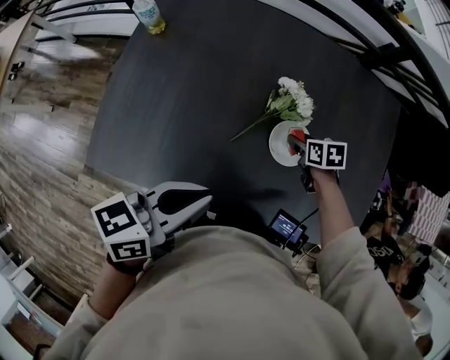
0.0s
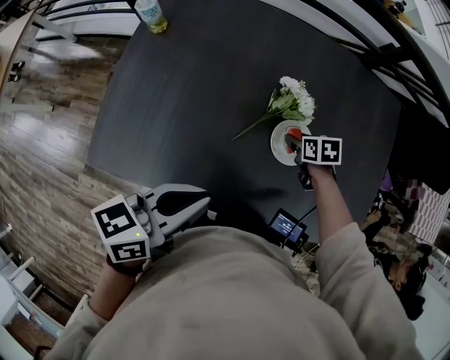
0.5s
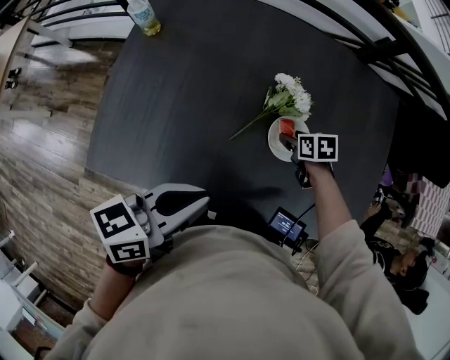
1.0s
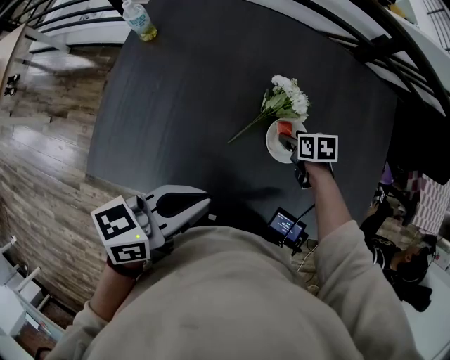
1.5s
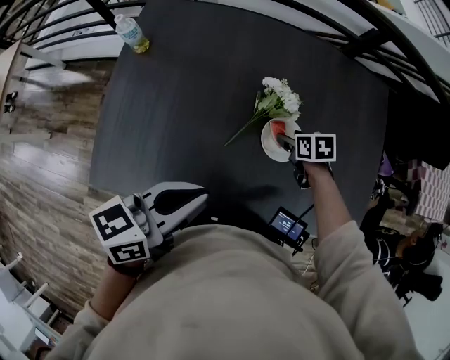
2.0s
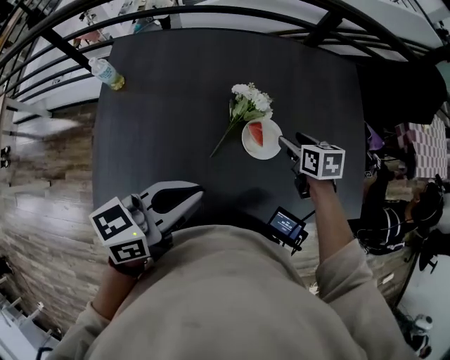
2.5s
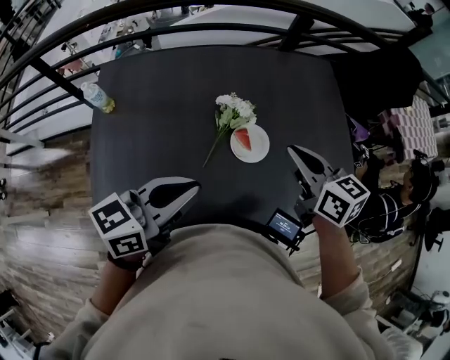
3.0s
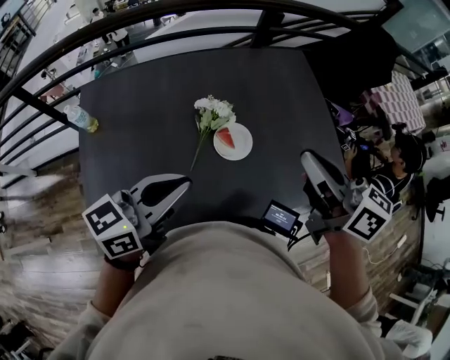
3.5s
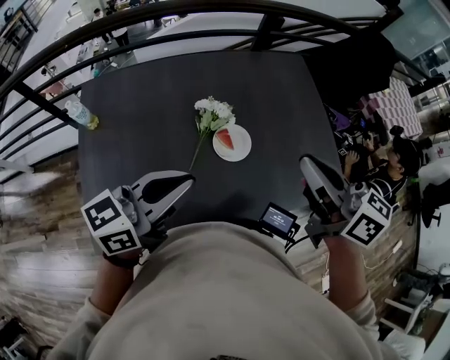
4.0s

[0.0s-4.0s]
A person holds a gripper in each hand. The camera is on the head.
0.0s to 2.0s: There are only small adjustments of the grippers.
2.0s to 4.0s: The right gripper heads upward, covering approximately 40 cm, tips its fingers upward by approximately 50 degrees, and closes. The left gripper goes about 5 cm upward, and swivels about 30 degrees.

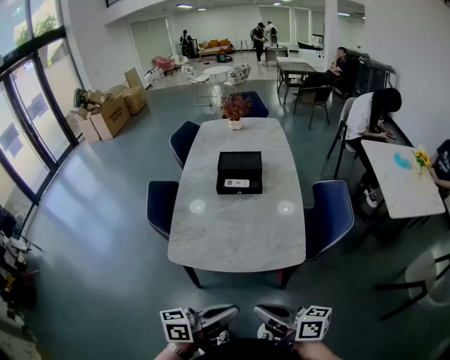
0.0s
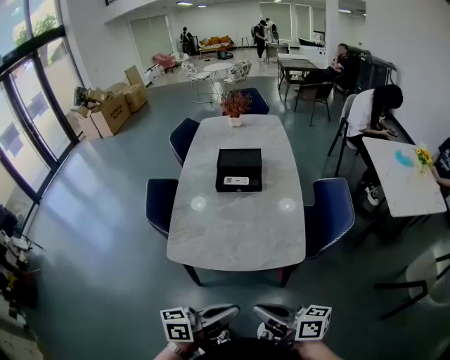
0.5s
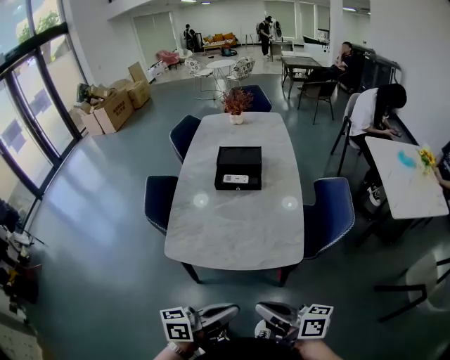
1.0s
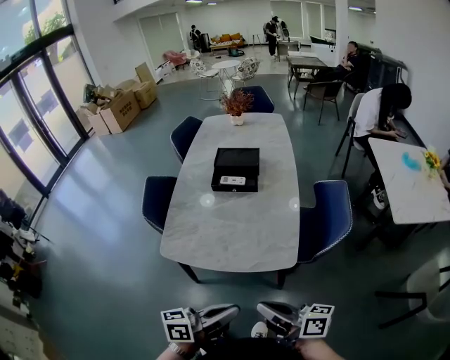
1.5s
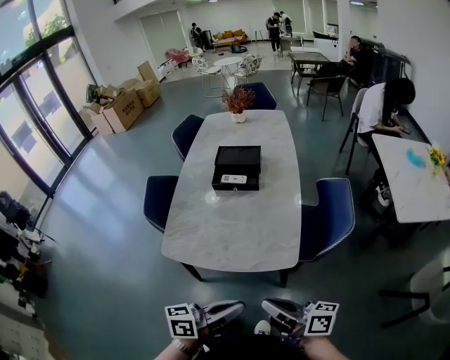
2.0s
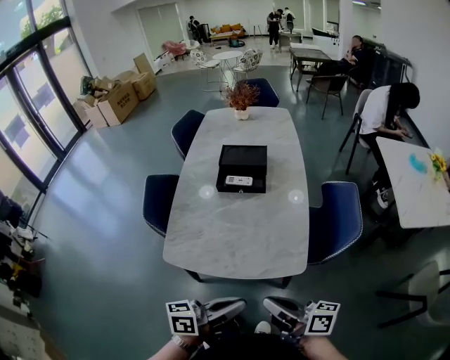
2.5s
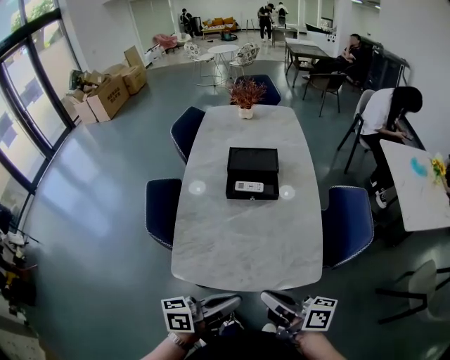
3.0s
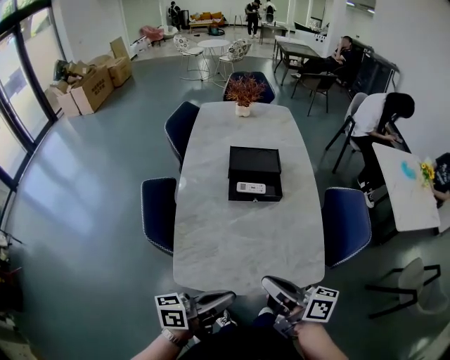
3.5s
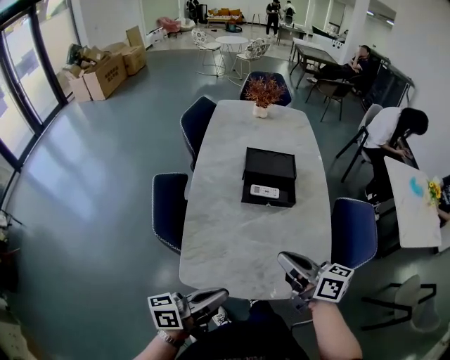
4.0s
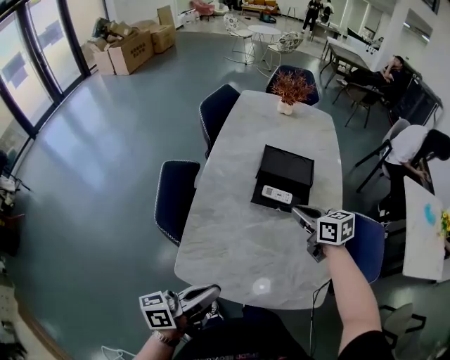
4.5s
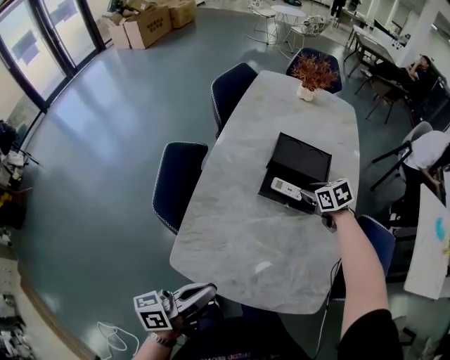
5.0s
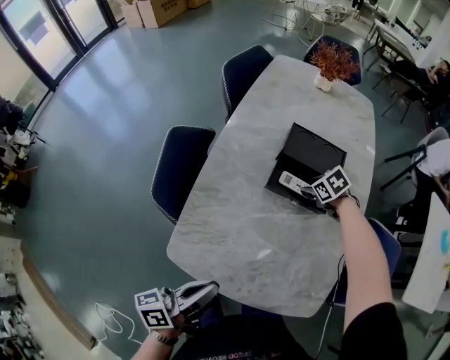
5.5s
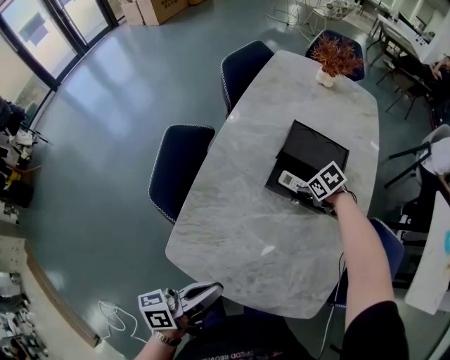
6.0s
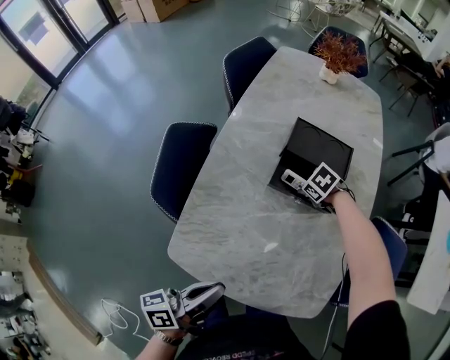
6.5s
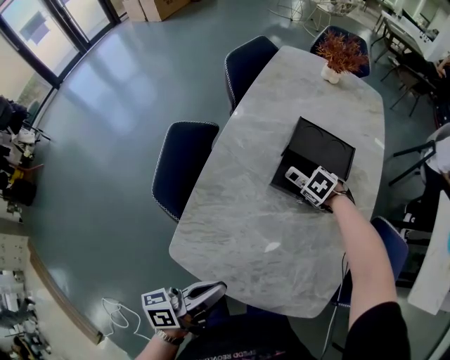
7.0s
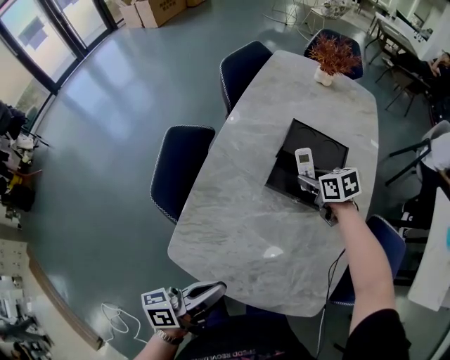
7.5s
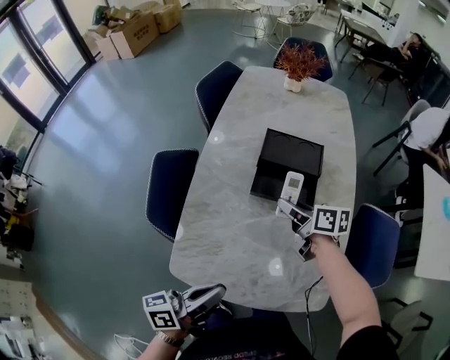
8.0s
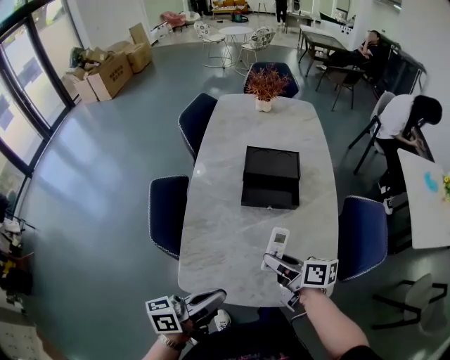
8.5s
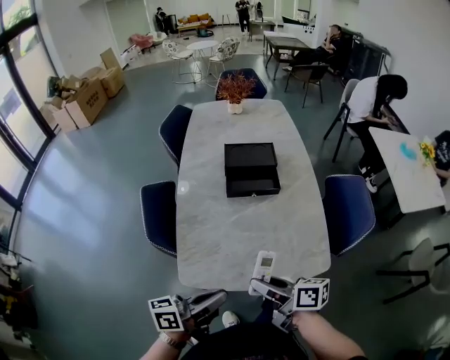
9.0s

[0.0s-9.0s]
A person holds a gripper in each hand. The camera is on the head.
0.0s to 2.0s: The two grippers go some 10 cm to the right.
2.0s to 4.5s: The right gripper shifts approximately 50 cm forward, and angles its fingers downward, by approximately 40 degrees. The left gripper is displaced to the left and forward by some 30 cm.
4.5s to 7.0s: The right gripper shifts about 20 cm downward, tilts its fingers roughly 50 degrees downward, and opens its fingers. The left gripper shifts by approximately 5 cm.
7.0s to 9.0s: The right gripper moves roughly 40 cm, and tips its fingers upward by some 70 degrees. The left gripper ends up approximately 10 cm from where it was, and changes its angle by some 30 degrees.

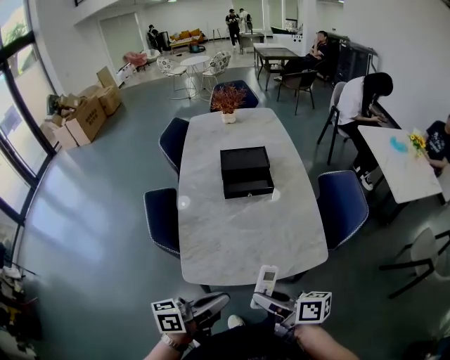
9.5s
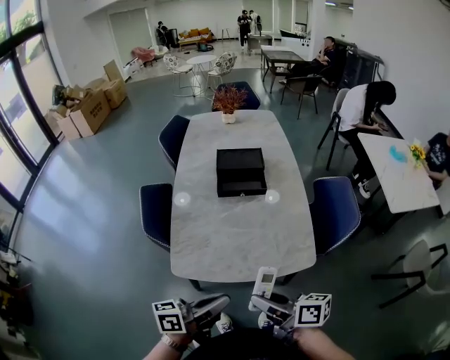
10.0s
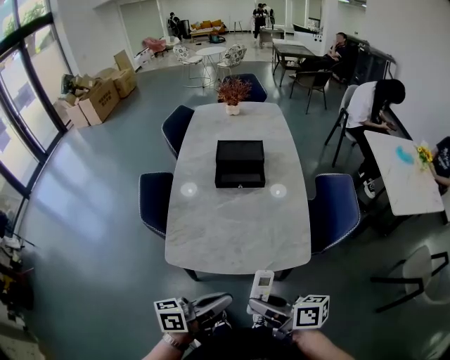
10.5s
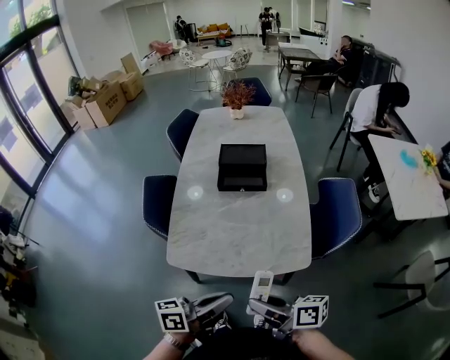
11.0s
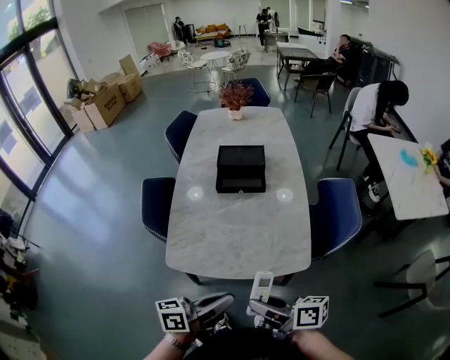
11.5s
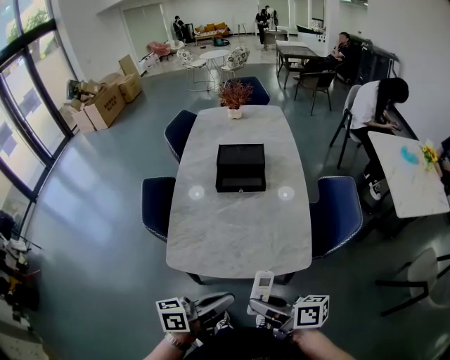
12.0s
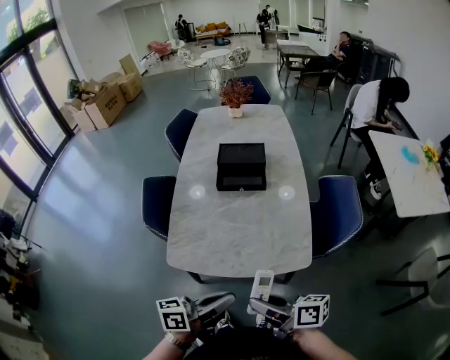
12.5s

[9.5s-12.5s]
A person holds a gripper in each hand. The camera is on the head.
9.5s to 11.0s: The two grippers go roughly 10 cm to the right.
11.0s to 12.5s: Neither gripper changes place.

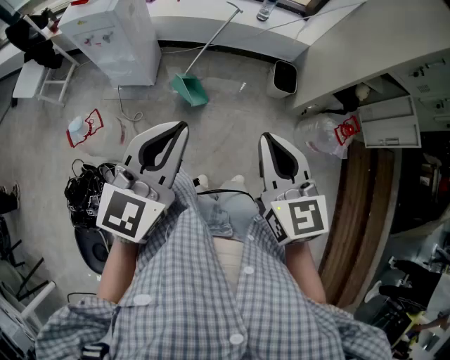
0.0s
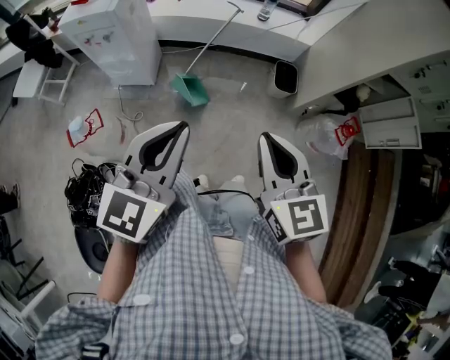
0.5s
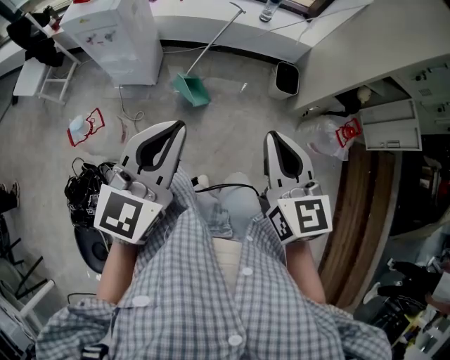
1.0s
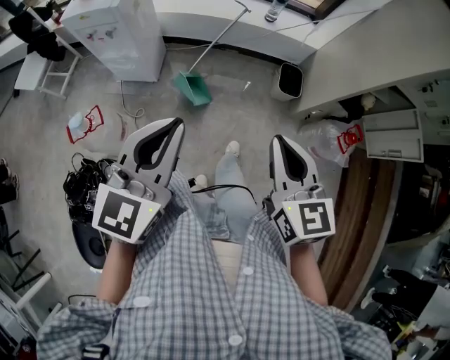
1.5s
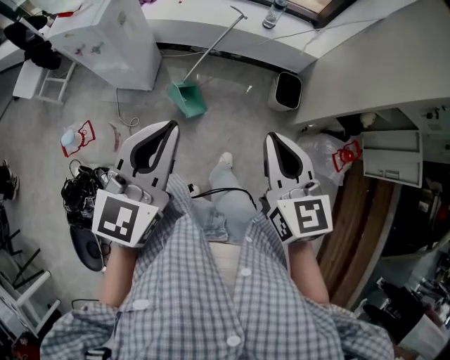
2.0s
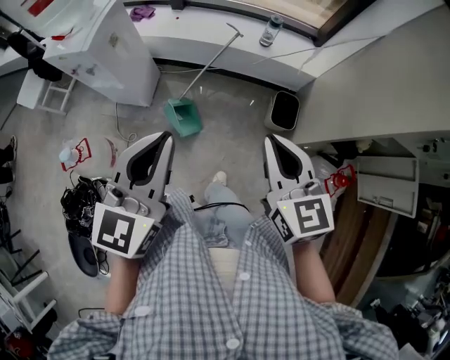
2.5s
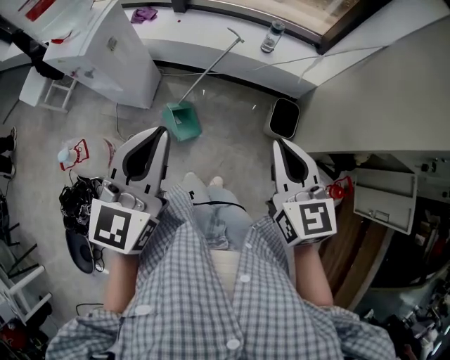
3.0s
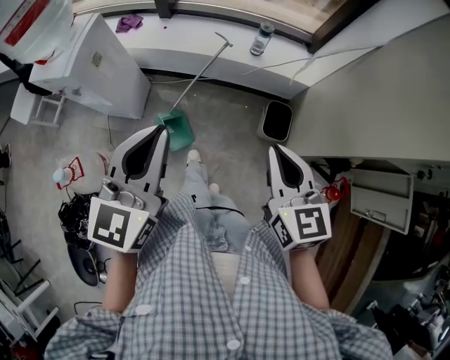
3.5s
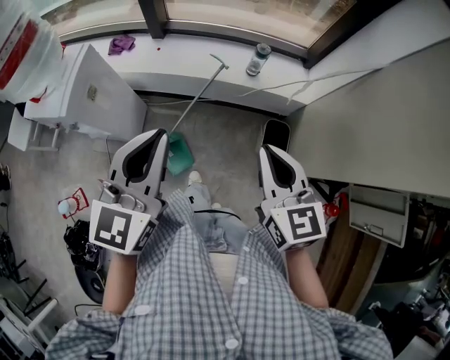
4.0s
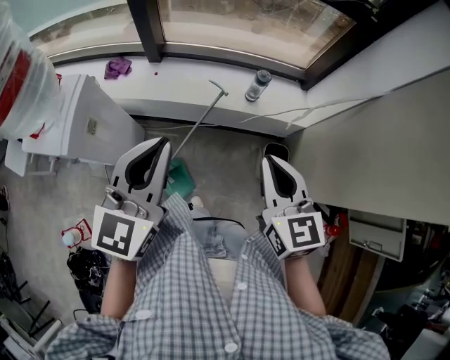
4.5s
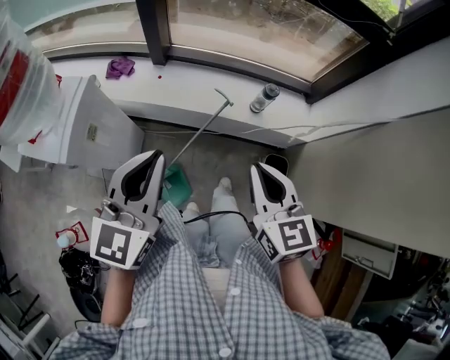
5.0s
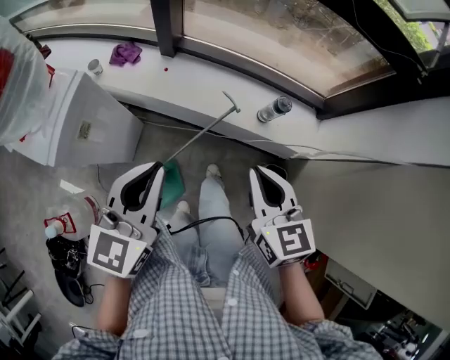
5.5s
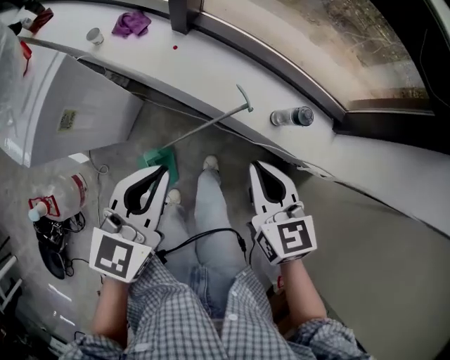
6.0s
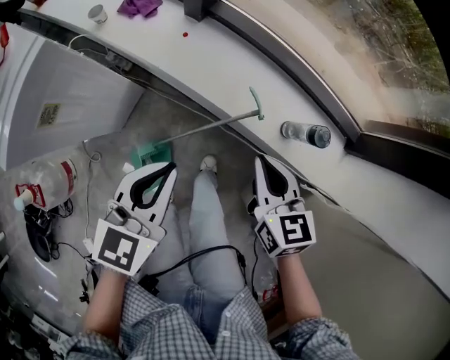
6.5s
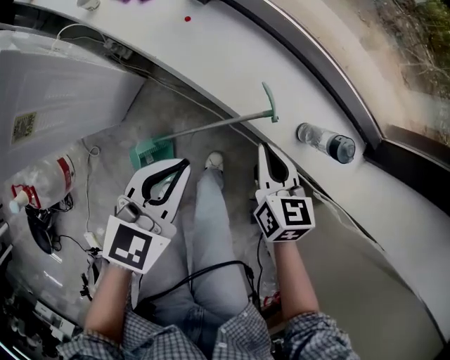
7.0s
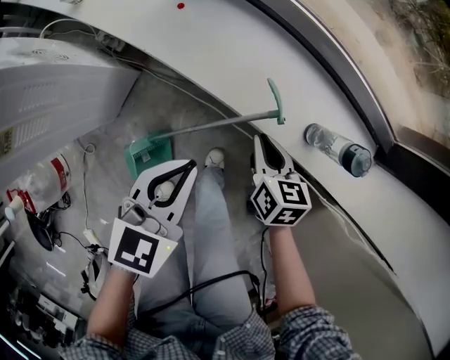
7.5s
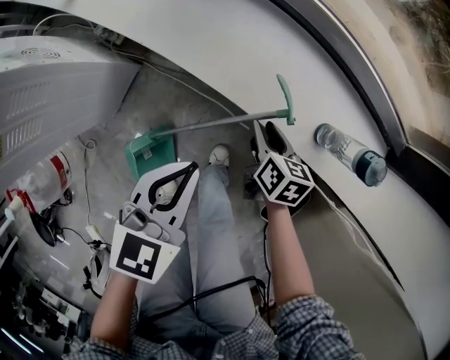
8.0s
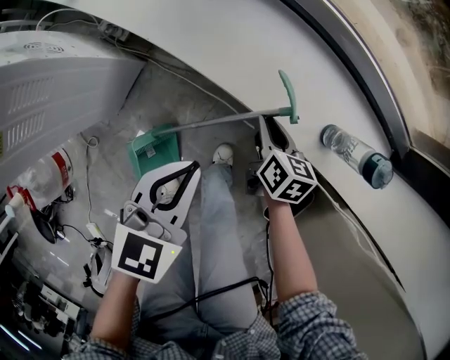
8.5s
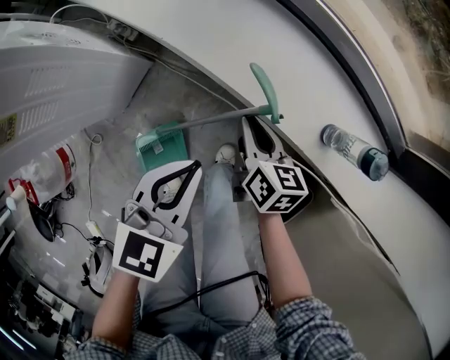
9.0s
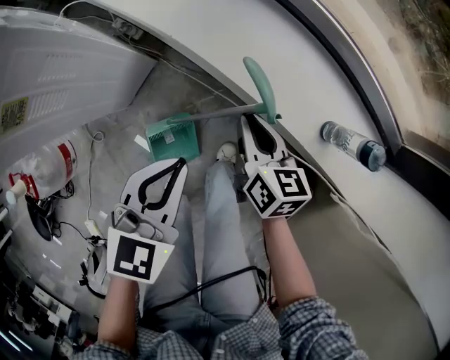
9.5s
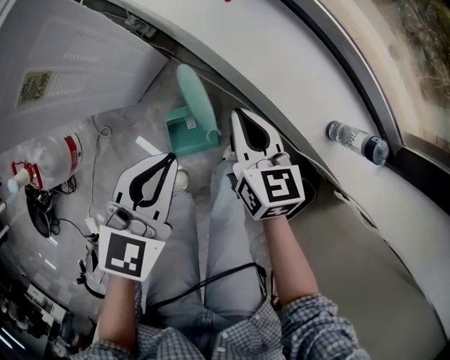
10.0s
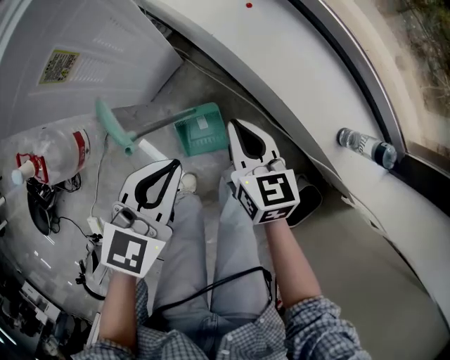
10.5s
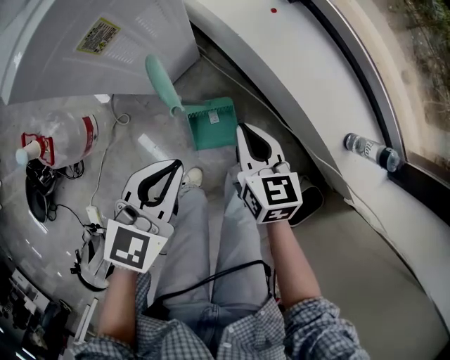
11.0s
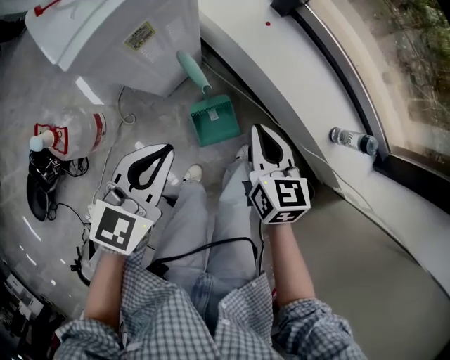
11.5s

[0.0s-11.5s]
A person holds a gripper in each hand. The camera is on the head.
0.0s to 2.0s: The right gripper travels forward and to the right by about 15 cm. The left gripper goes approximately 10 cm forward.
2.0s to 4.0s: The grippers both shift forward by approximately 25 cm.
4.0s to 6.0s: Both grippers move forward and downward, approximately 30 cm. The right gripper changes its angle by approximately 20 degrees. The left gripper changes its angle by approximately 20 degrees.
6.0s to 7.5s: Both grippers move downward, approximately 30 cm. The right gripper turns by approximately 20 degrees.
7.5s to 9.5s: The left gripper travels to the left by about 5 cm; the right gripper moves to the left, approximately 10 cm, travels downward and back again, roughly 10 cm each way, and opens, then closes once more.
9.5s to 11.5s: The left gripper is displaced to the left, upward and backward by about 25 cm. The right gripper shifts roughly 20 cm upward, to the left and backward.
